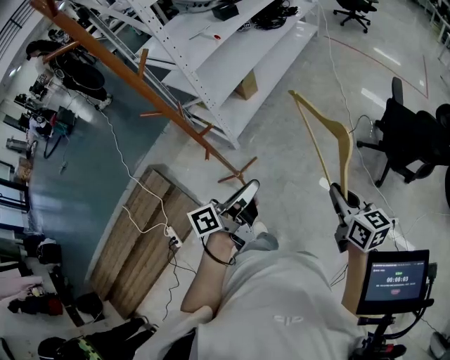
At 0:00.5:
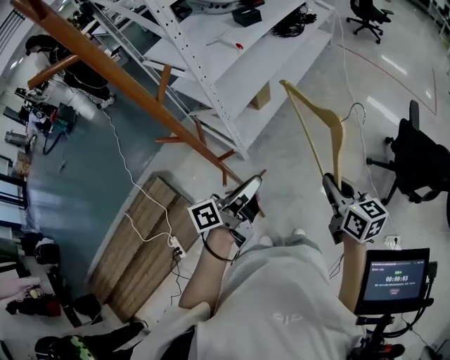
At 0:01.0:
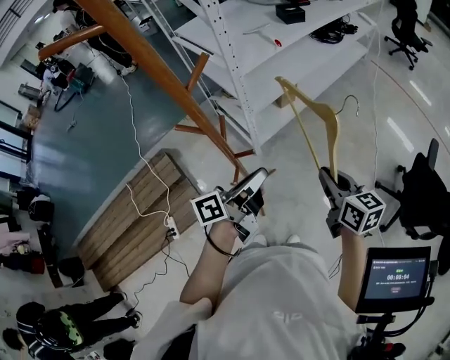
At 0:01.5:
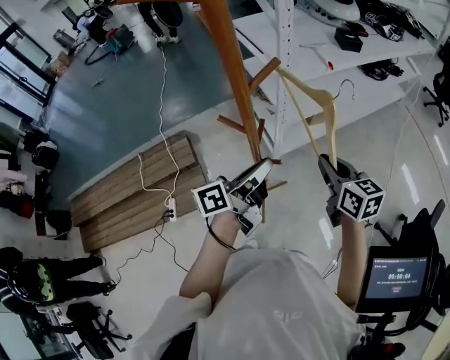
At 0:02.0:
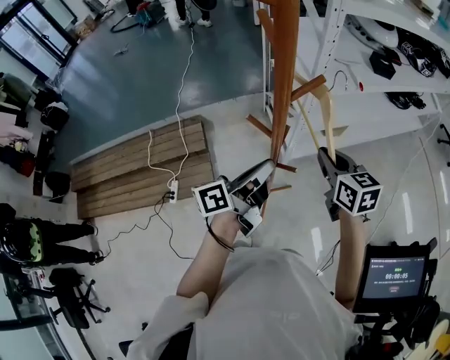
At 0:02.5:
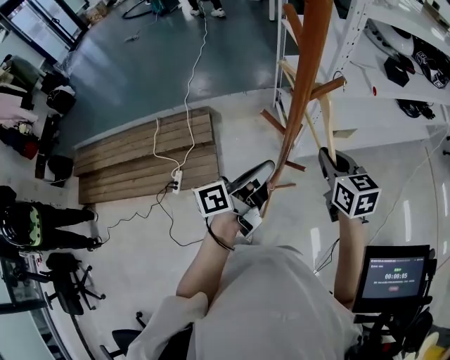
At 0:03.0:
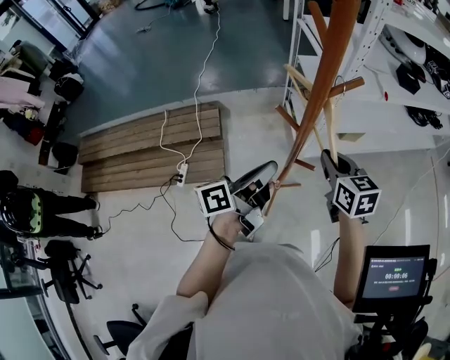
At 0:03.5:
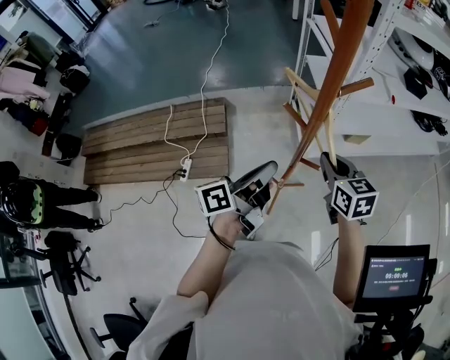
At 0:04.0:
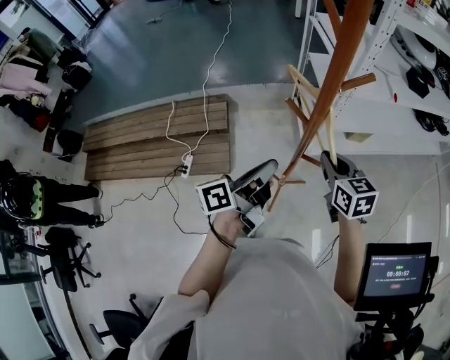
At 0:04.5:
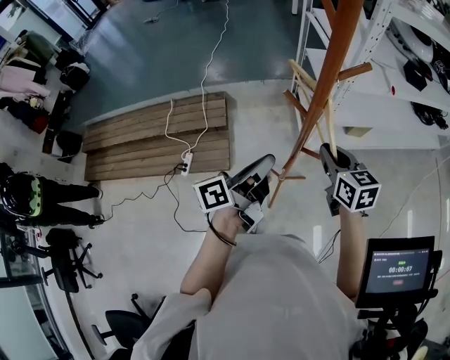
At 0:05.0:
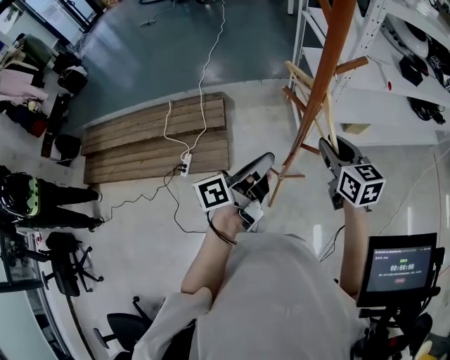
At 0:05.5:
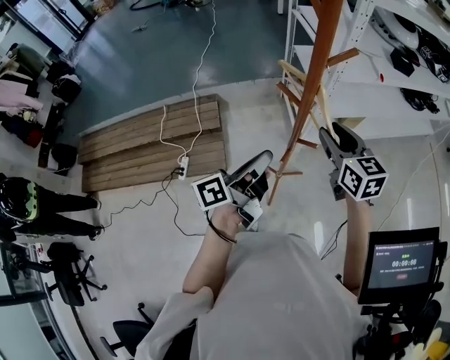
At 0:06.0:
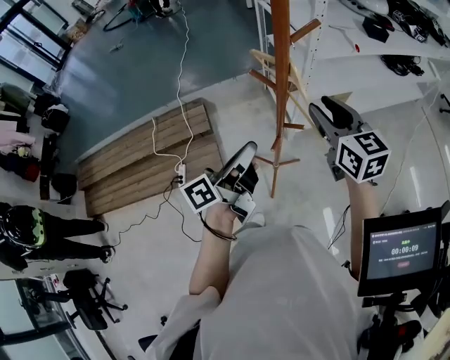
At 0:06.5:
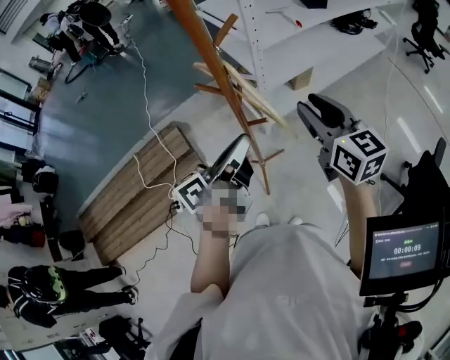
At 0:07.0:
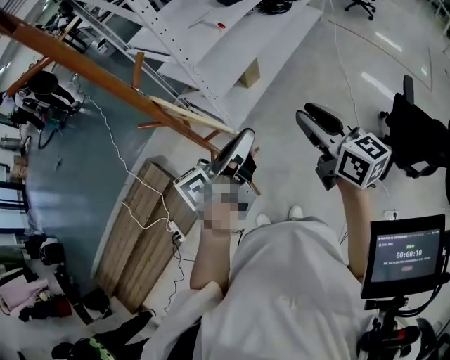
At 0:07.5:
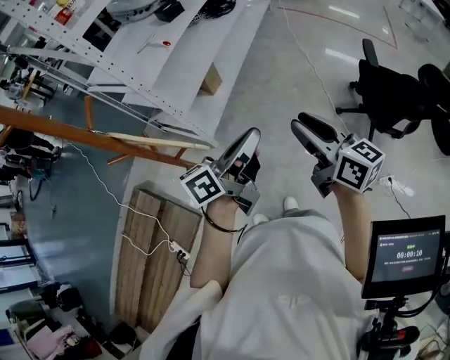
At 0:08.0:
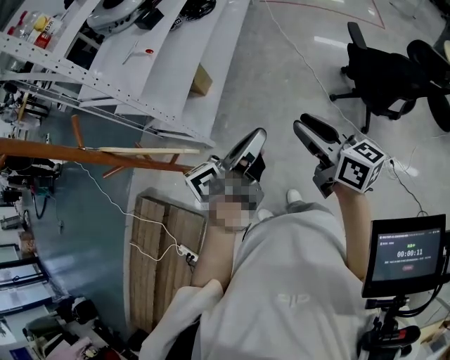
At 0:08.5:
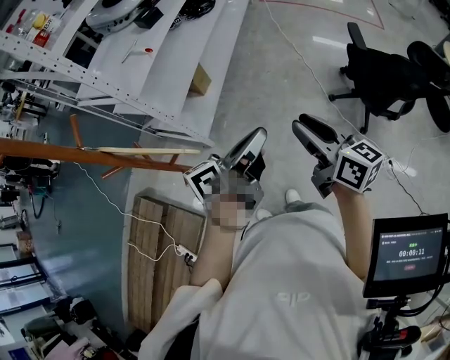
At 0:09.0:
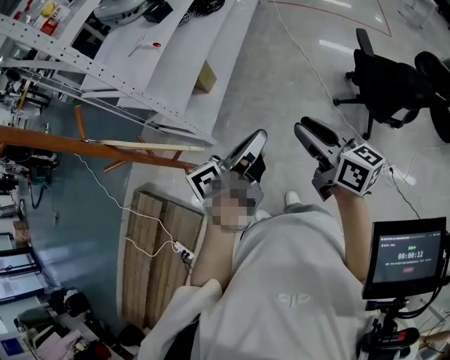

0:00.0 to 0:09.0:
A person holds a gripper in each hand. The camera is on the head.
0:00.0 to 0:02.0: The right gripper changes place by roughly 50 cm, and swivels about 40 degrees, while the left gripper changes place by approximately 30 cm, and turns by some 40 degrees.
0:02.0 to 0:04.5: The right gripper travels to the left and downward by roughly 10 cm. The left gripper shifts some 5 cm to the left.
0:04.5 to 0:07.0: The right gripper shifts by approximately 30 cm, changes its angle by roughly 40 degrees, and opens up. The left gripper shifts by about 25 cm, and turns by approximately 40 degrees.
0:07.0 to 0:09.0: The right gripper is displaced to the right and downward by some 15 cm. Meanwhile the left gripper moves to the right, roughly 15 cm, and turns by about 20 degrees.

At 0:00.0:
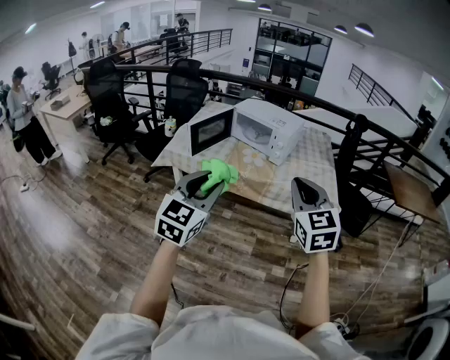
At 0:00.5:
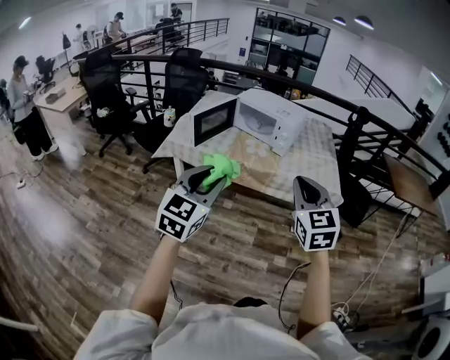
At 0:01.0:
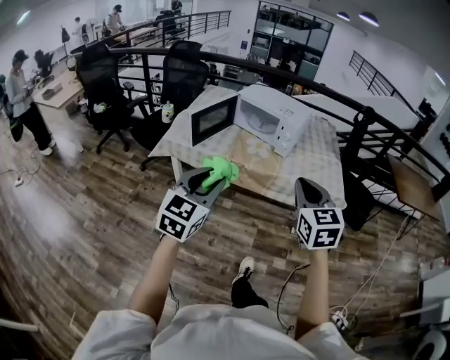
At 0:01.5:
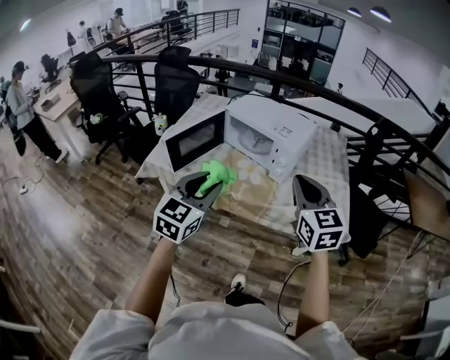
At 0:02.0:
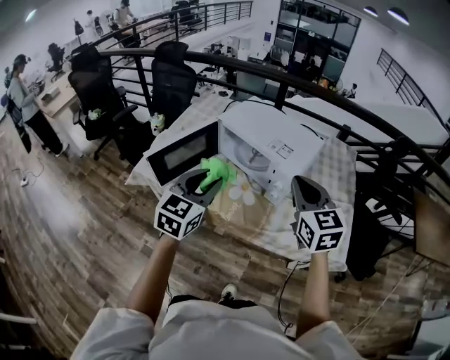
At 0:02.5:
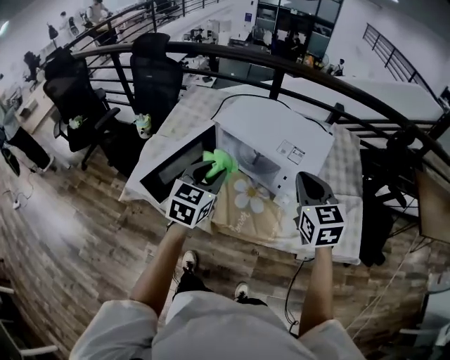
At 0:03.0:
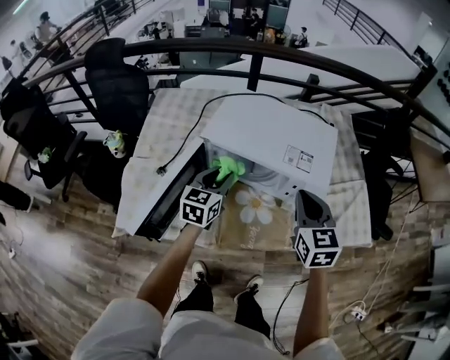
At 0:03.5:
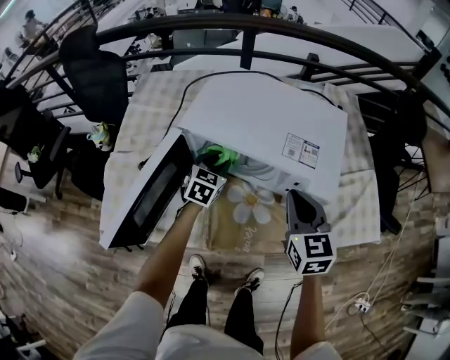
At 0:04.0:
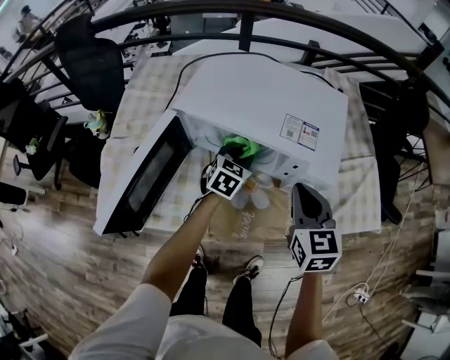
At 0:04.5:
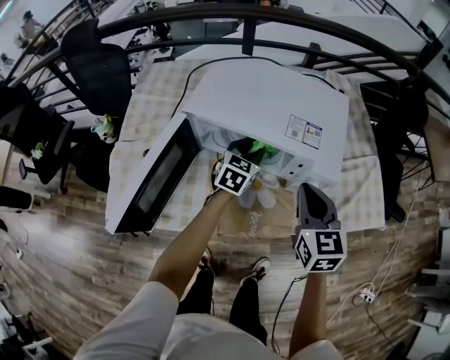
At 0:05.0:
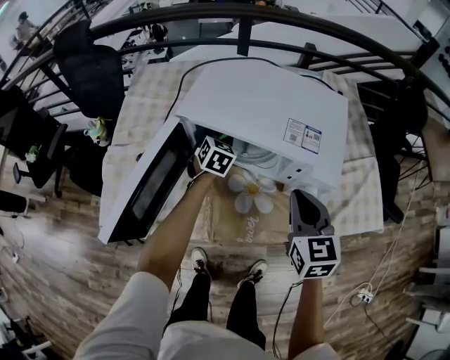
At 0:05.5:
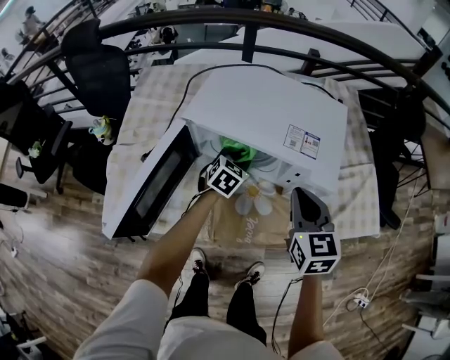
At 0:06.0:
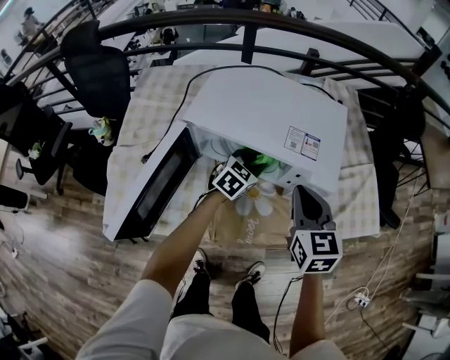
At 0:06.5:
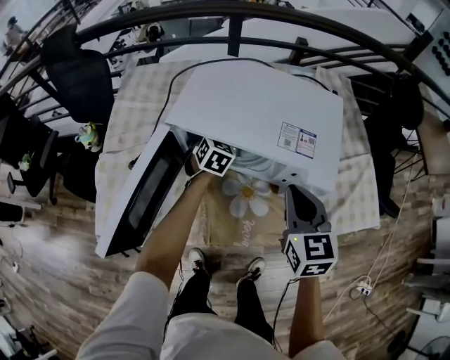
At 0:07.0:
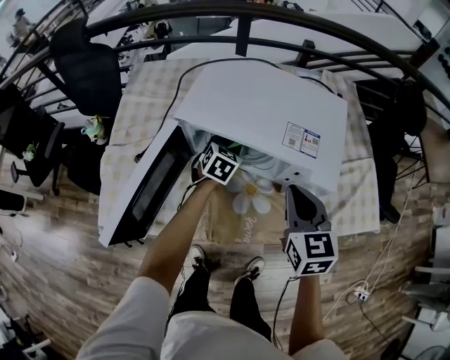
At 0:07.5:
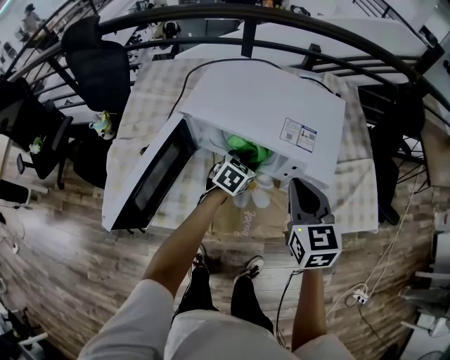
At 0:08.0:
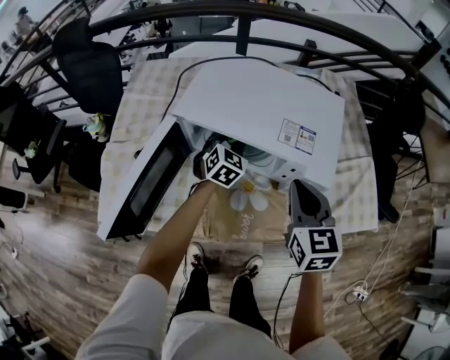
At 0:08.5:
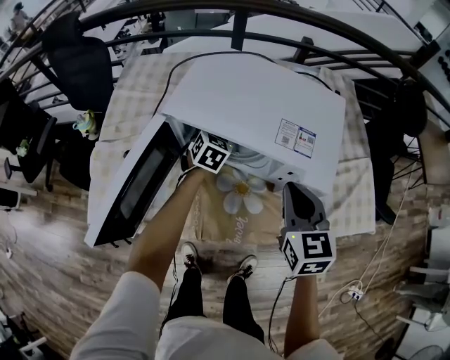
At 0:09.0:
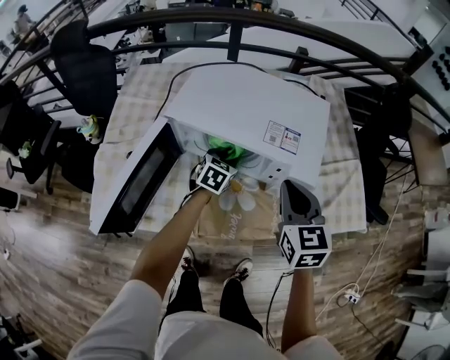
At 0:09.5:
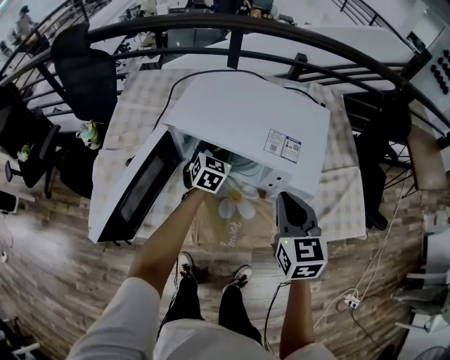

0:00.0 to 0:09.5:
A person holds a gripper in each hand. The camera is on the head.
0:00.0 to 0:02.0: The pair of grippers is taken forward, some 50 cm.
0:02.0 to 0:04.0: The left gripper ends up approximately 40 cm from where it was, and rotates some 30 degrees. Meanwhile the right gripper travels downward by about 20 cm, and rotates approximately 30 degrees.
0:04.0 to 0:05.5: The left gripper moves some 10 cm to the left and comes back.
0:05.5 to 0:07.5: The left gripper moves left and right over some 10 cm, changing direction 2 times.
0:07.5 to 0:09.5: The left gripper moves forward and backward over some 10 cm, changing direction 2 times, and rotates approximately 20 degrees.

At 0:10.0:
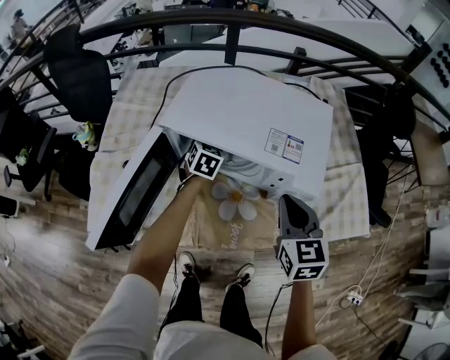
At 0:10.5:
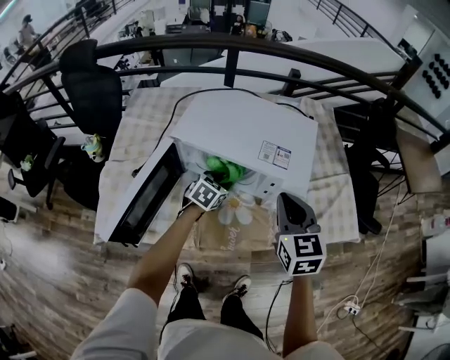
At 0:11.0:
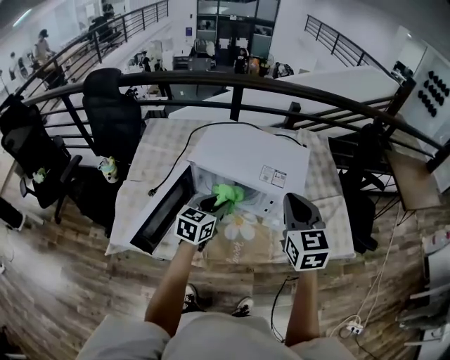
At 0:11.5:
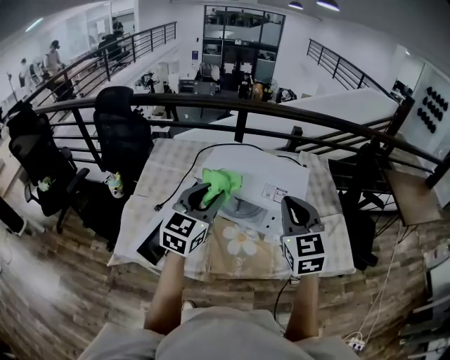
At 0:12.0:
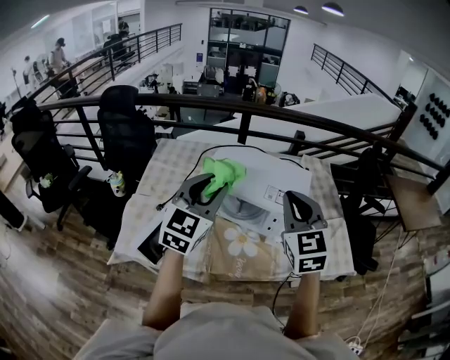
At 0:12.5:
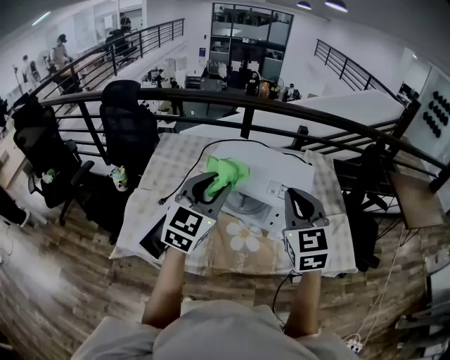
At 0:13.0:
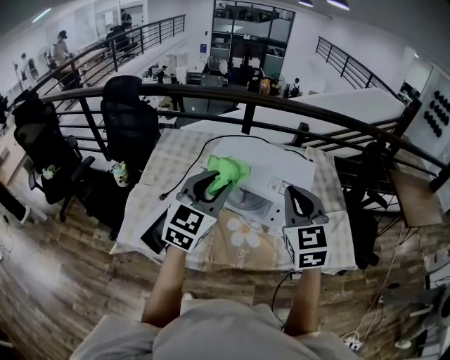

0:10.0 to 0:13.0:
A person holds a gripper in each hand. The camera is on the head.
0:10.0 to 0:11.5: The right gripper shifts about 25 cm upward, and changes its angle by about 20 degrees. Meanwhile the left gripper goes some 40 cm upward and backward, and angles its fingers upward, by approximately 30 degrees.
0:11.5 to 0:13.0: The grippers stay close to where they were, moving slightly.

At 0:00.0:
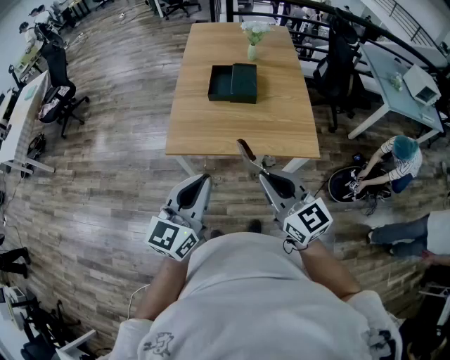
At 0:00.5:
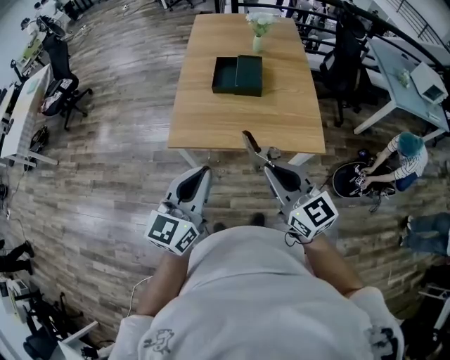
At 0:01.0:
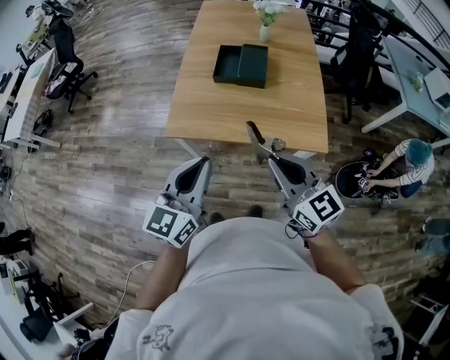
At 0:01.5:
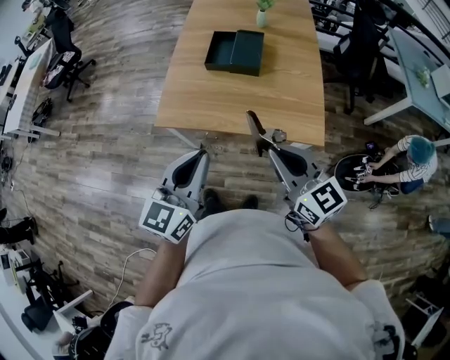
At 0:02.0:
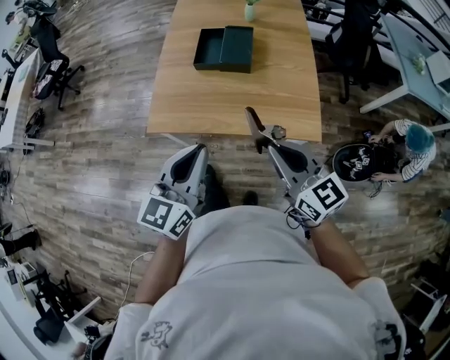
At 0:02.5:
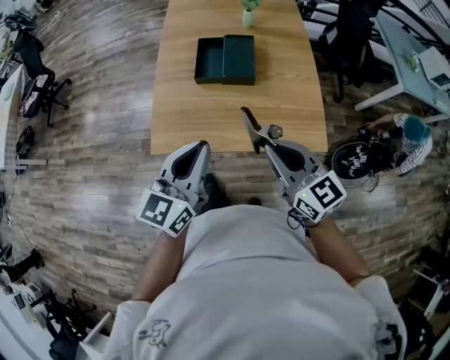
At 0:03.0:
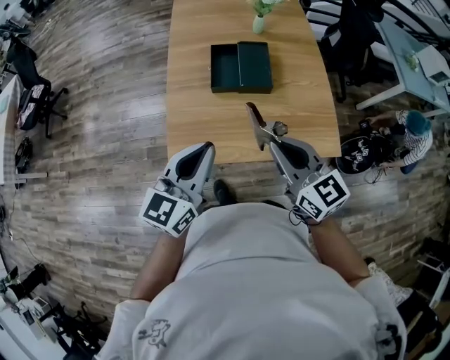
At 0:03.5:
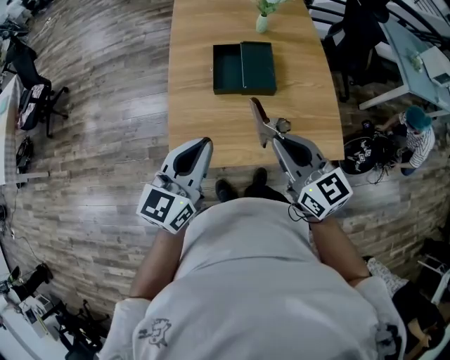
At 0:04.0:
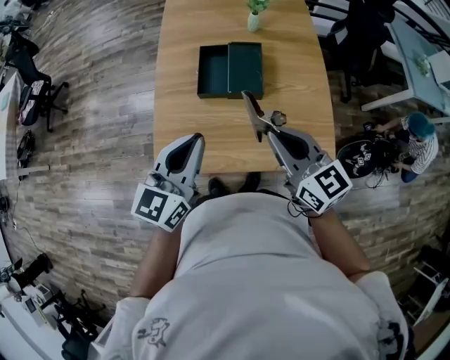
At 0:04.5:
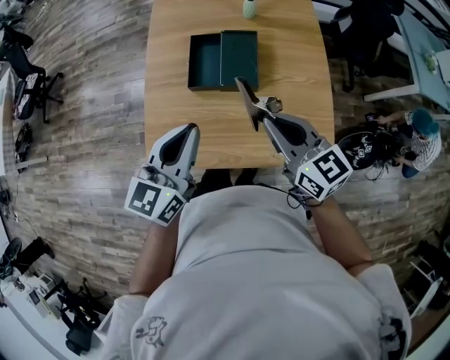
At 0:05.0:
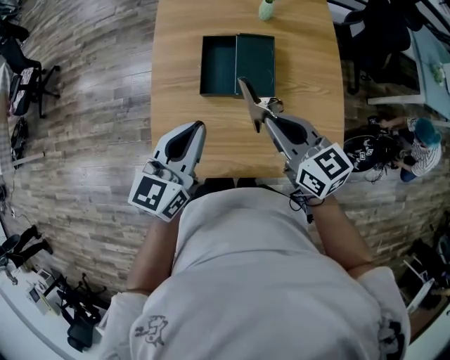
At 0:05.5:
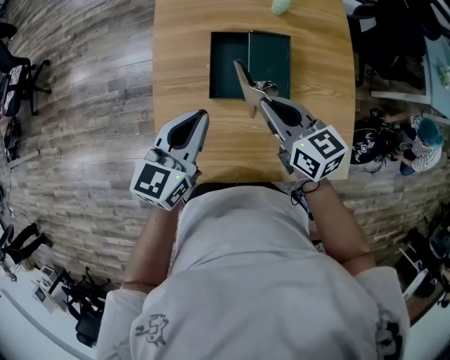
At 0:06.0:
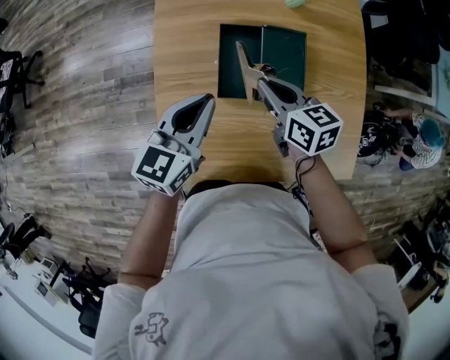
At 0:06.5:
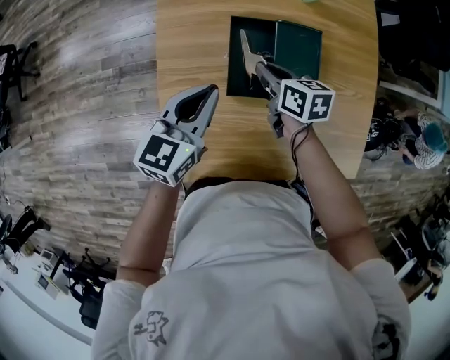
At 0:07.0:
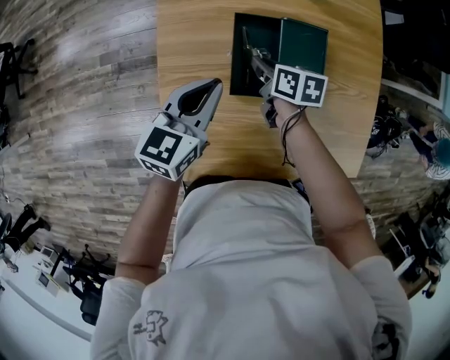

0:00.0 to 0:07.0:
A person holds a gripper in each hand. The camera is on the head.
0:00.0 to 0:02.0: The right gripper heads to the right and forward, covering approximately 15 cm; the left gripper shifts about 10 cm forward and to the right.
0:02.0 to 0:03.5: The grippers both shift forward and to the left by approximately 20 cm.
0:03.5 to 0:05.0: The right gripper goes roughly 15 cm forward and downward. Meanwhile the left gripper heads forward, covering about 15 cm.
0:05.0 to 0:07.0: The left gripper heads forward, downward and to the left, covering roughly 20 cm. The right gripper goes roughly 35 cm downward, forward and to the left, and turns by approximately 40 degrees.
